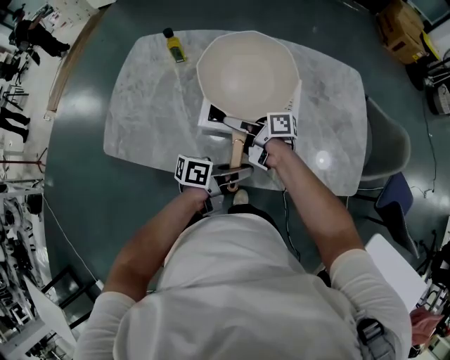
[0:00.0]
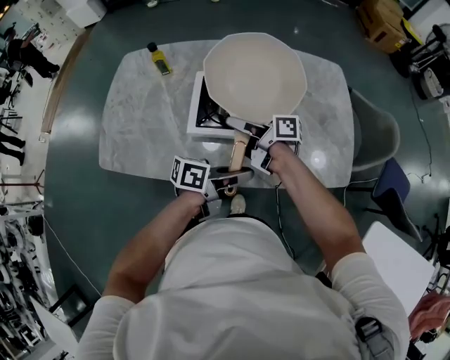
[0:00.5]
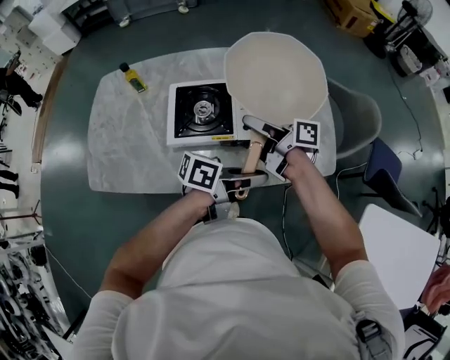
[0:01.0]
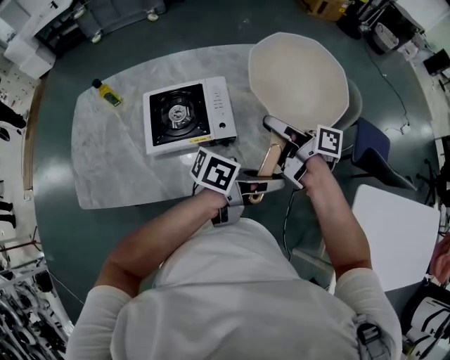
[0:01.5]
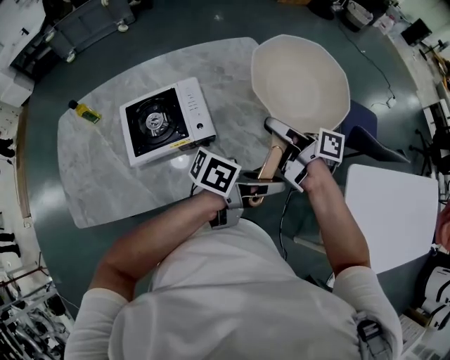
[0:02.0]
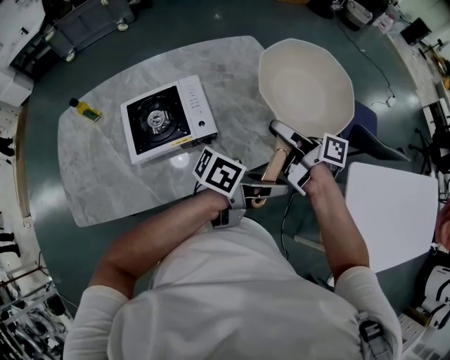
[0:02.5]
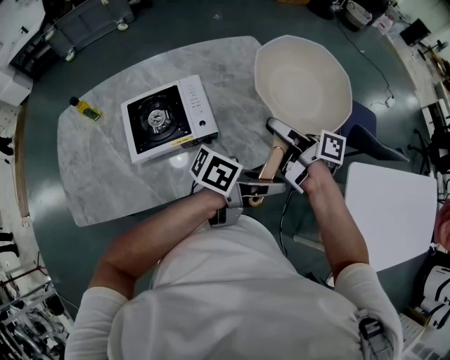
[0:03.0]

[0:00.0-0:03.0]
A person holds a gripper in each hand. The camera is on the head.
0:00.0 to 0:01.5: The left gripper moves roughly 25 cm, and changes its angle by roughly 30 degrees. Meanwhile the right gripper moves approximately 30 cm, and rotates some 30 degrees.
0:01.5 to 0:03.0: The right gripper shifts by approximately 5 cm. The left gripper changes place by some 5 cm.

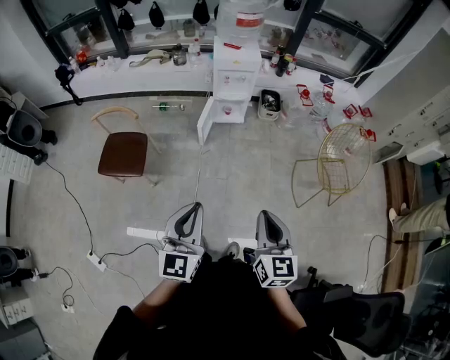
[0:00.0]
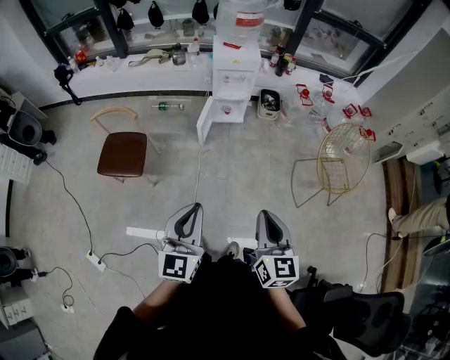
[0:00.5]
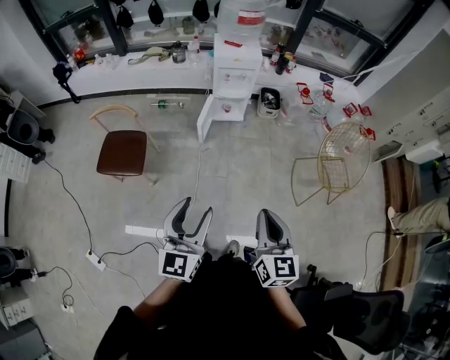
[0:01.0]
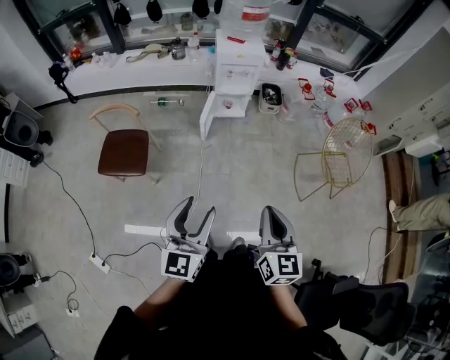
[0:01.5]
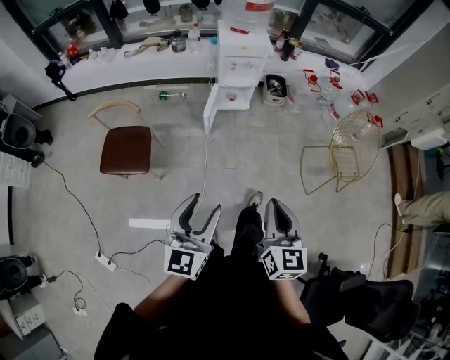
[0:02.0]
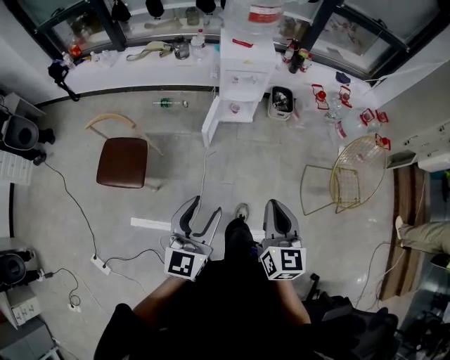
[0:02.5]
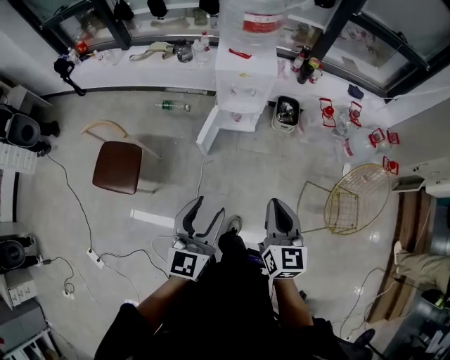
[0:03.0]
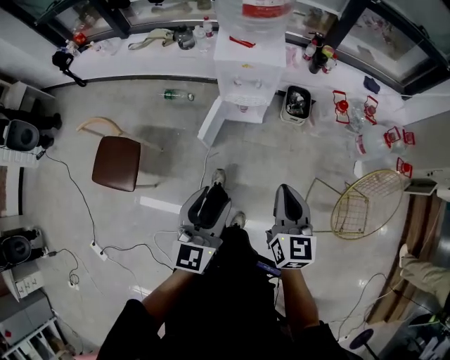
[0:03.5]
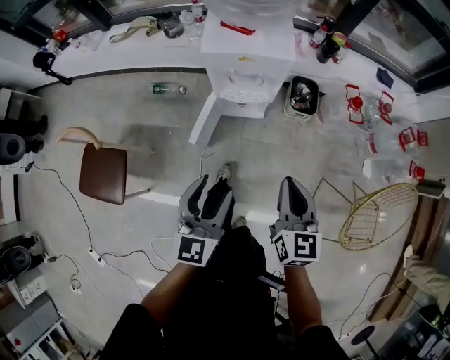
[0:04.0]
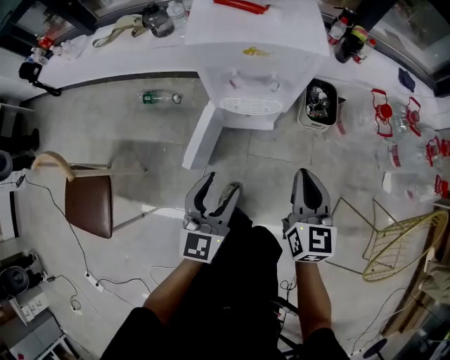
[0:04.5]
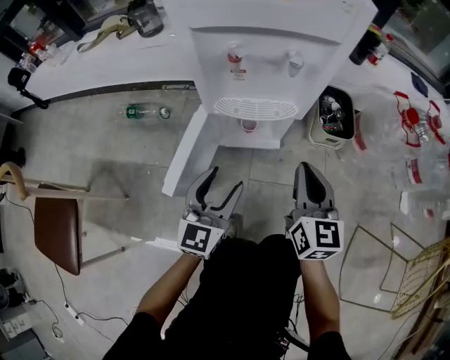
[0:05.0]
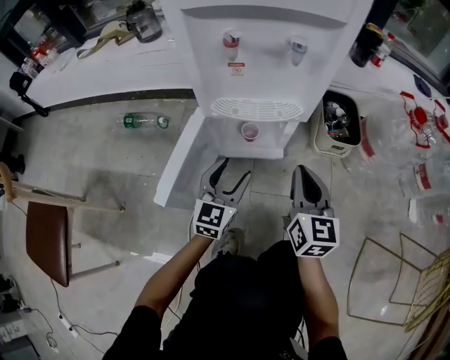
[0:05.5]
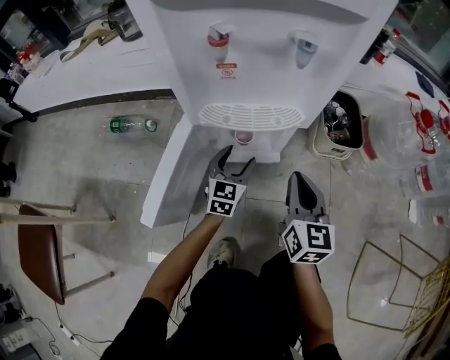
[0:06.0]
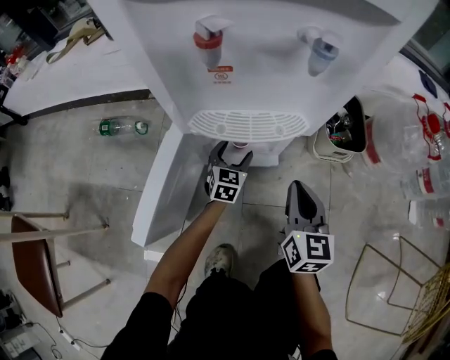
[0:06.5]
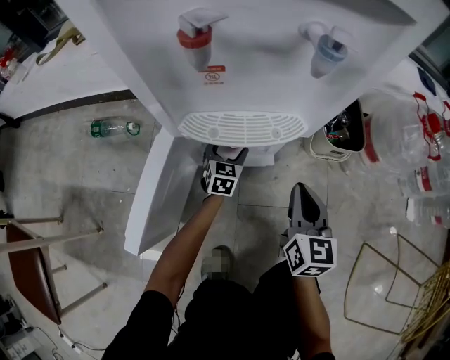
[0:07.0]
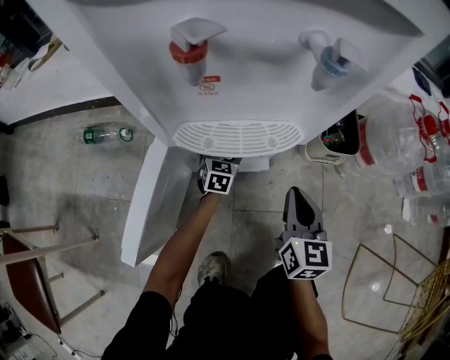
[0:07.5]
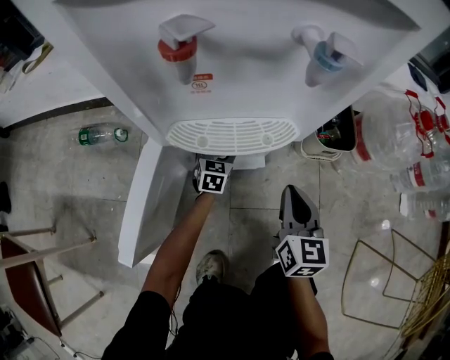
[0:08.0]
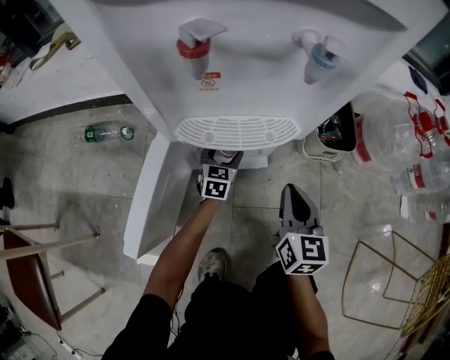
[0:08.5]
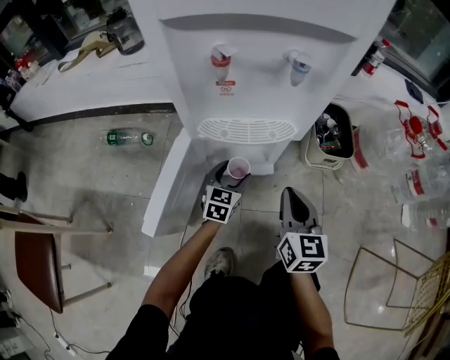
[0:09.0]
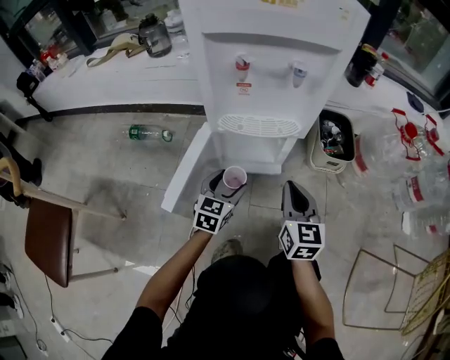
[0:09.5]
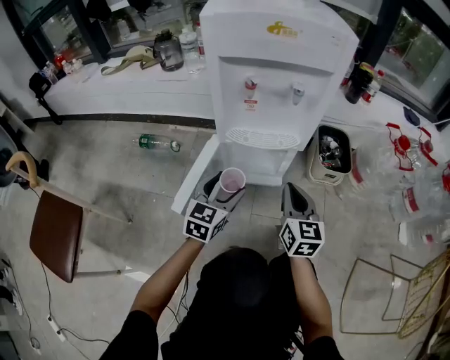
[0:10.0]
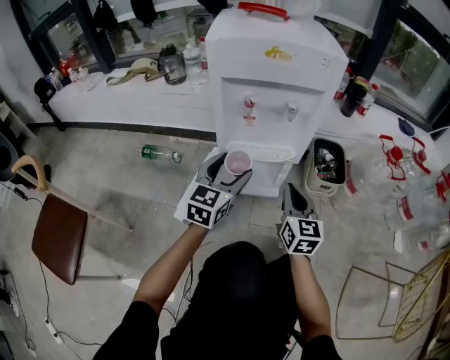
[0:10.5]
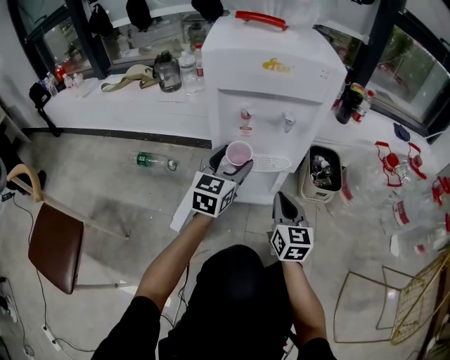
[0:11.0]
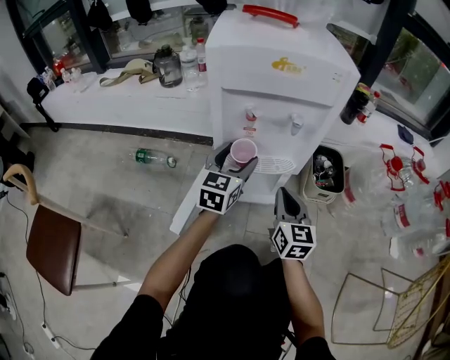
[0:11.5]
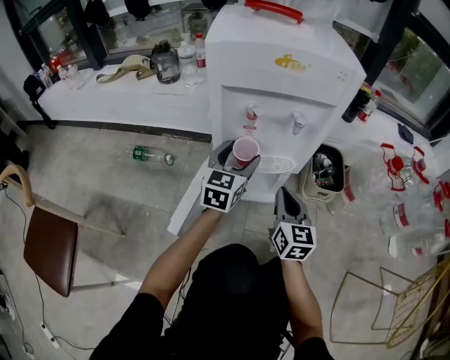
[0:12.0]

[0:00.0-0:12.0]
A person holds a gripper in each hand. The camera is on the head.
0:00.0 to 0:02.0: Both grippers travel together to the left, roughly 5 cm. The left gripper opens its fingers.
0:02.0 to 0:04.0: The pair of grippers is taken forward, approximately 50 cm. The left gripper is displaced downward by about 20 cm.
0:04.0 to 0:06.0: The grippers both shift downward and forward by some 70 cm.
0:06.0 to 0:08.0: The right gripper heads downward, covering some 5 cm, while the left gripper moves downward and forward, about 15 cm.
0:08.0 to 0:10.0: The right gripper goes some 15 cm upward and backward, while the left gripper moves upward and backward, about 40 cm.
0:10.0 to 0:12.0: The left gripper heads forward and upward, covering approximately 15 cm. The right gripper moves forward, approximately 5 cm.

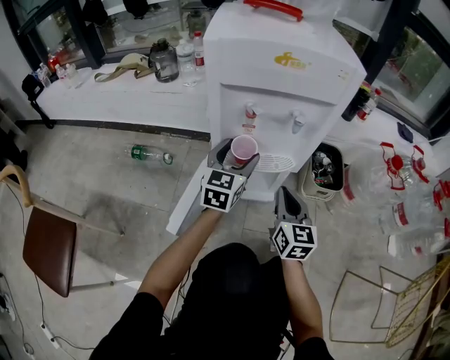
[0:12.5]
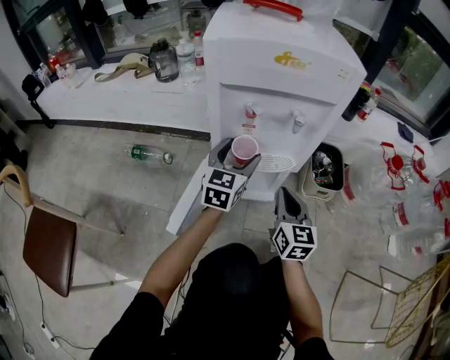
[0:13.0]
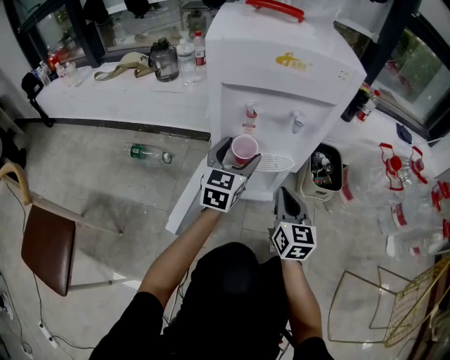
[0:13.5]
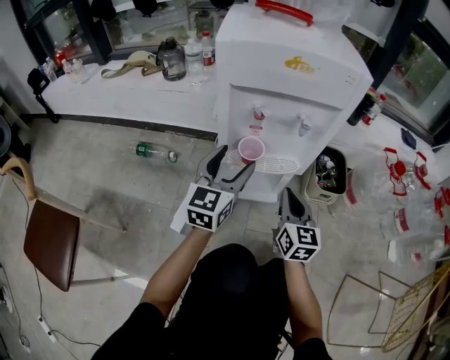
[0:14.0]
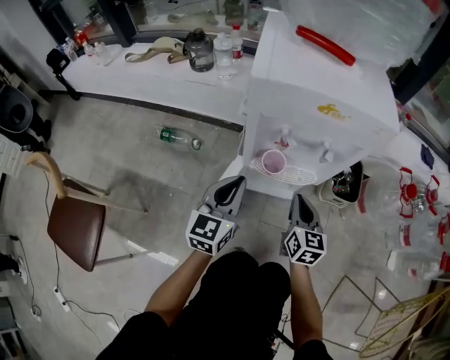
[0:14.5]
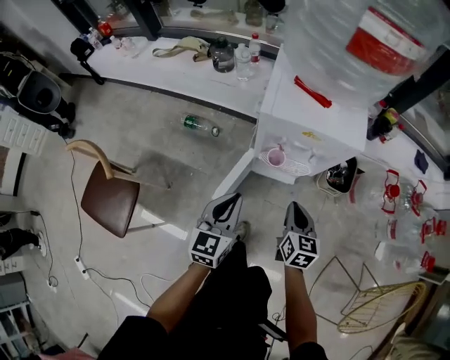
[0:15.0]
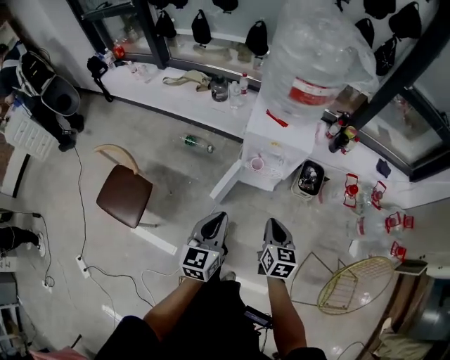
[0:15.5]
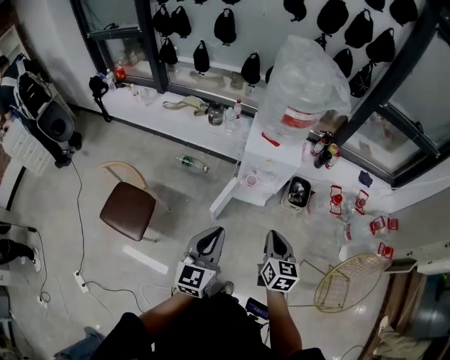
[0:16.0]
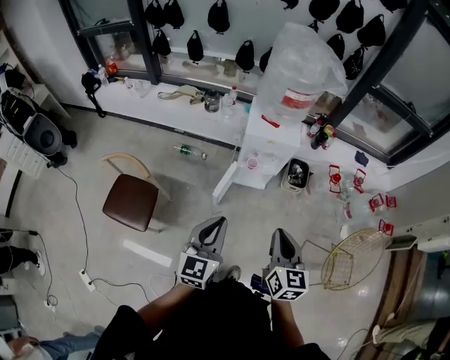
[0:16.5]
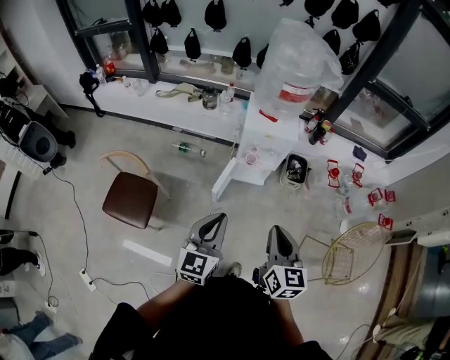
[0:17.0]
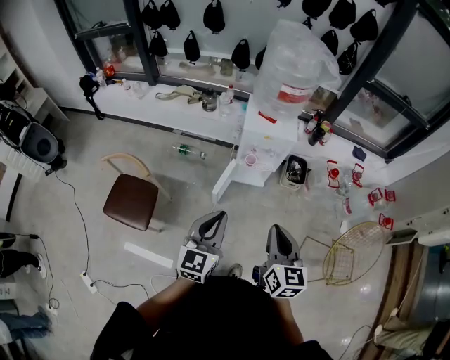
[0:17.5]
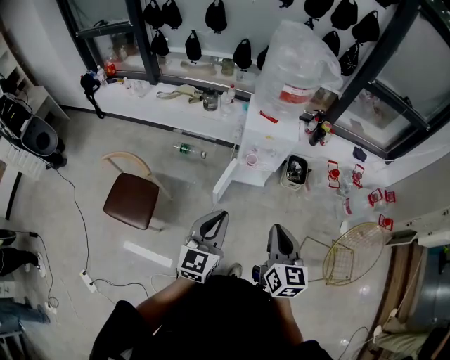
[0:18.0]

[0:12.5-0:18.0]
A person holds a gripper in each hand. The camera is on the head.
0:12.5 to 0:14.5: The left gripper is displaced backward, to the left and upward by about 15 cm, and closes.
0:14.5 to 0:16.0: The grippers both shift upward and backward by some 60 cm.
0:16.0 to 0:18.0: The right gripper heads backward and upward, covering roughly 15 cm. The left gripper heads backward, covering about 5 cm.

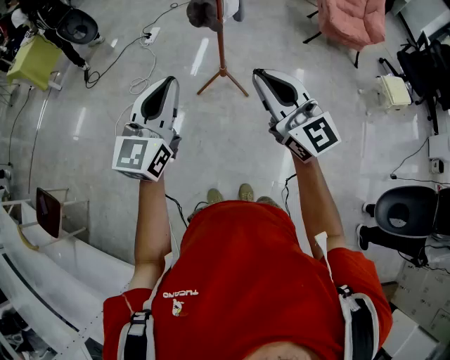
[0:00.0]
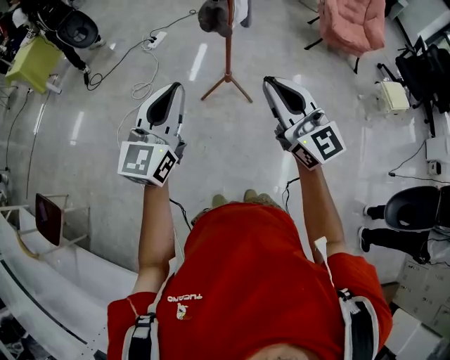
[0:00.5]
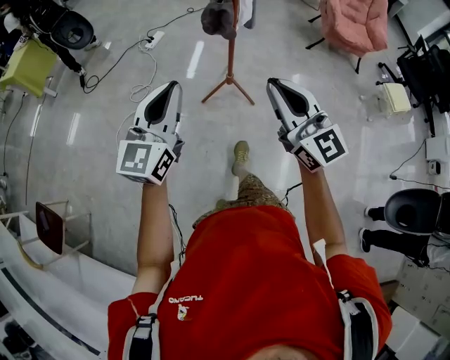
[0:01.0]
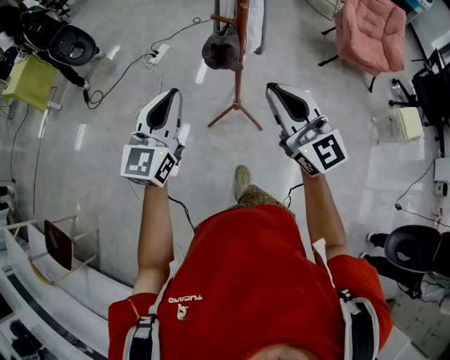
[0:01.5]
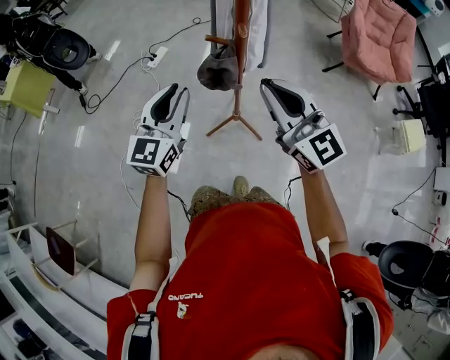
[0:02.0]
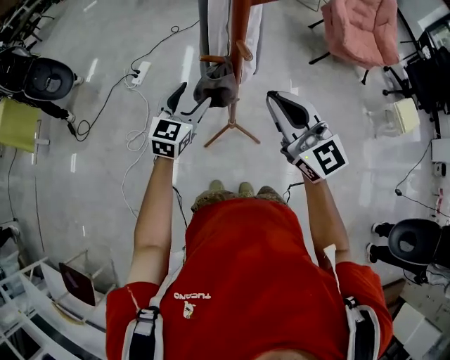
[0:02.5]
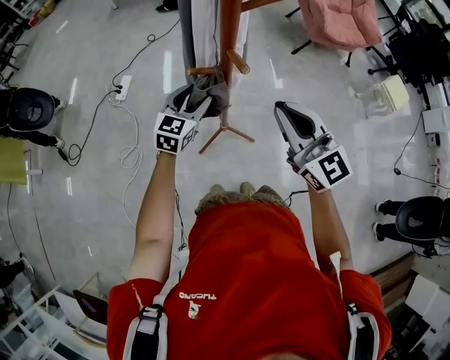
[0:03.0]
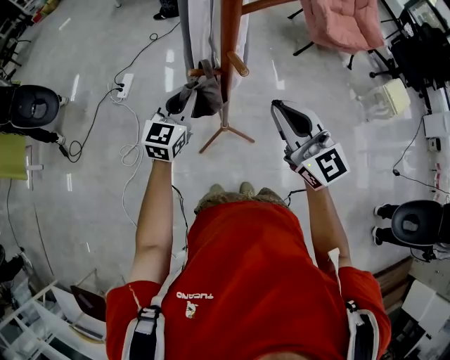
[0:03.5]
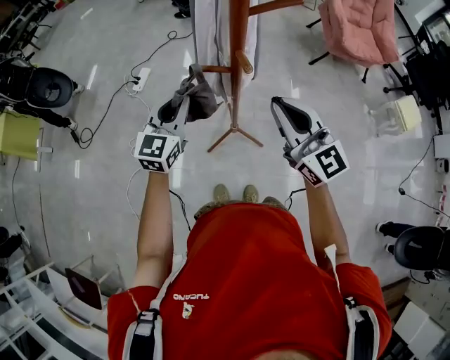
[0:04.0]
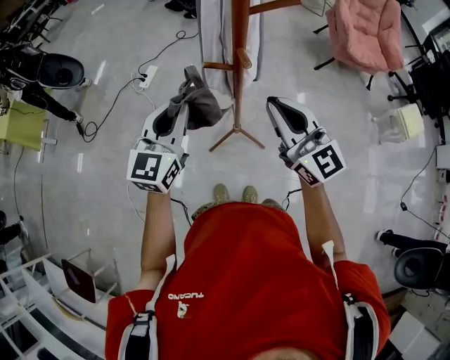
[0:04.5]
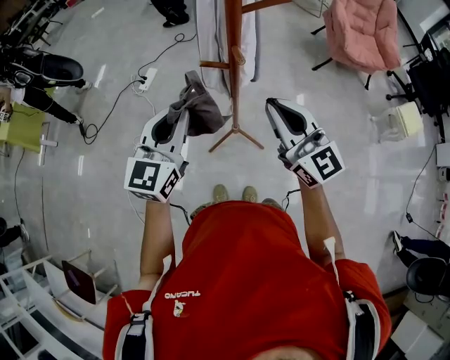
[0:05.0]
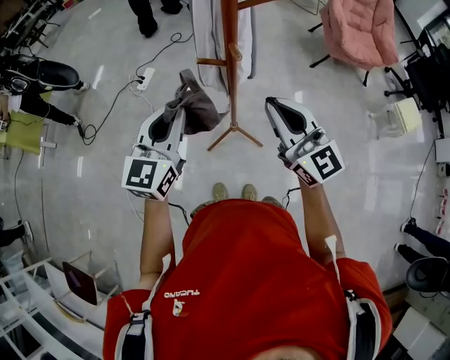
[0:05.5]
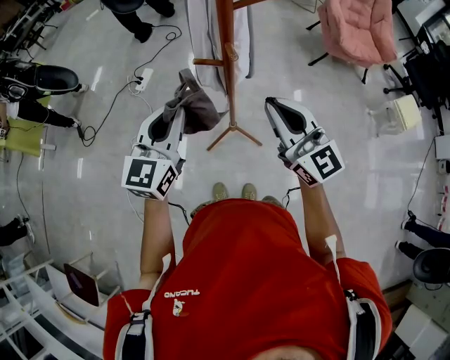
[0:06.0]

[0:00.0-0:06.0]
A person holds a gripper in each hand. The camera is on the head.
0:00.0 to 0:02.0: Both grippers move forward, roughly 40 cm.
0:02.0 to 0:04.0: The right gripper heads forward, covering some 5 cm, while the left gripper is displaced forward by roughly 10 cm, and opens, then closes once more.
0:04.0 to 0:06.0: The left gripper moves backward and upward, approximately 10 cm.
